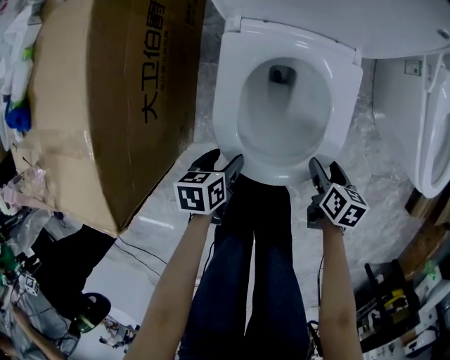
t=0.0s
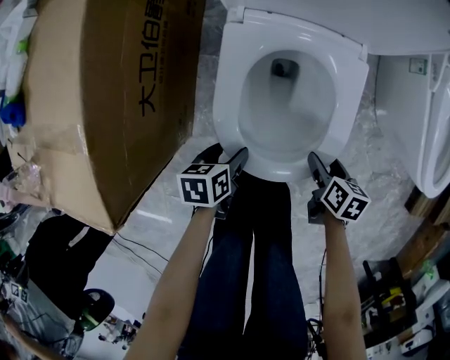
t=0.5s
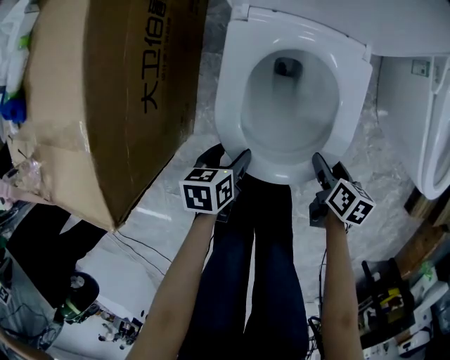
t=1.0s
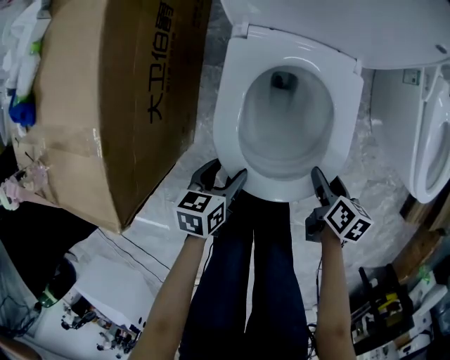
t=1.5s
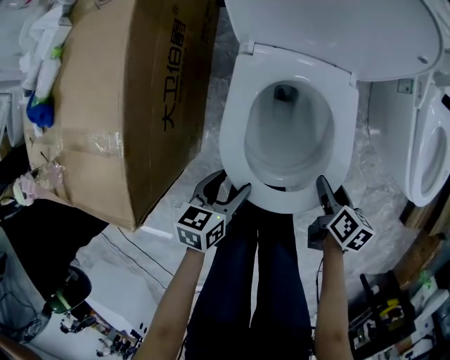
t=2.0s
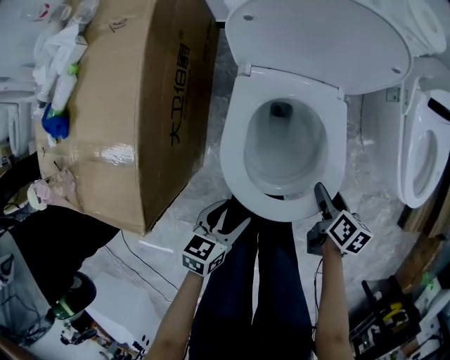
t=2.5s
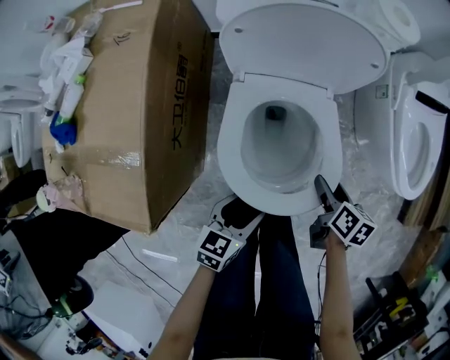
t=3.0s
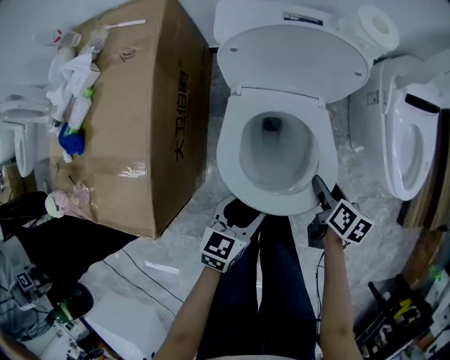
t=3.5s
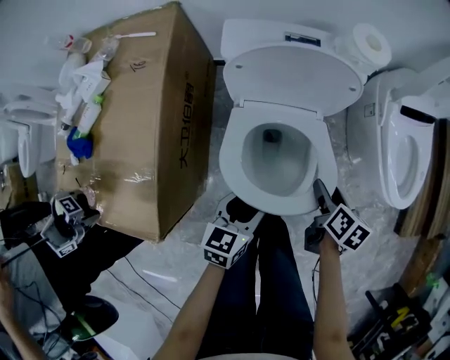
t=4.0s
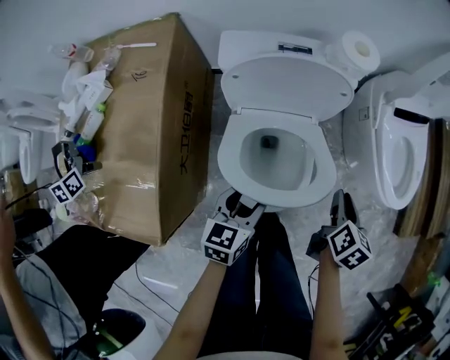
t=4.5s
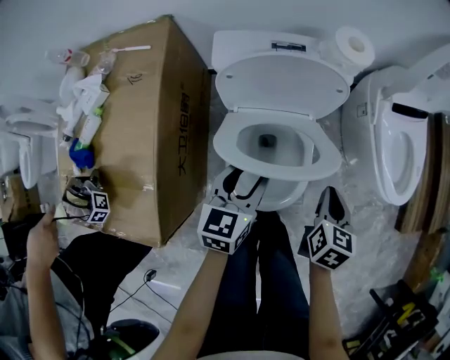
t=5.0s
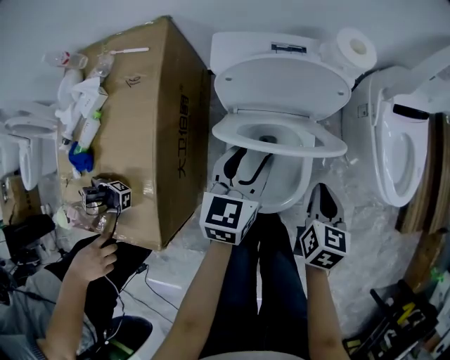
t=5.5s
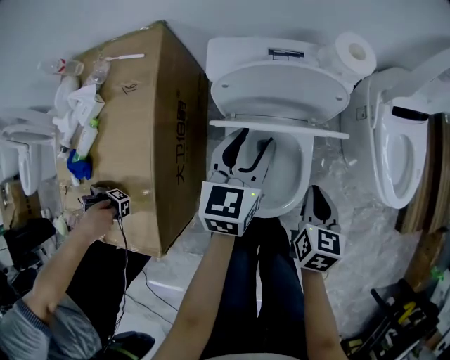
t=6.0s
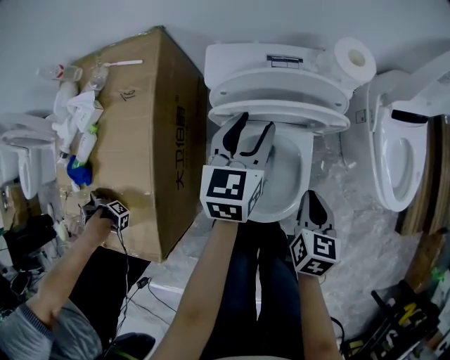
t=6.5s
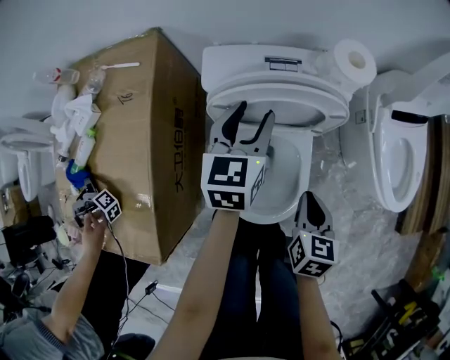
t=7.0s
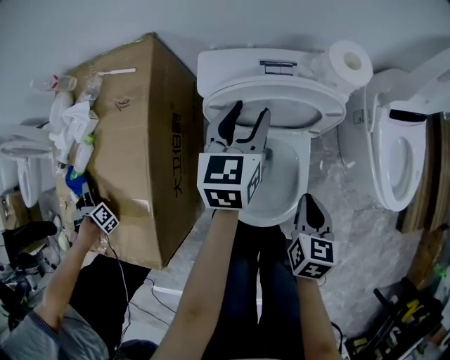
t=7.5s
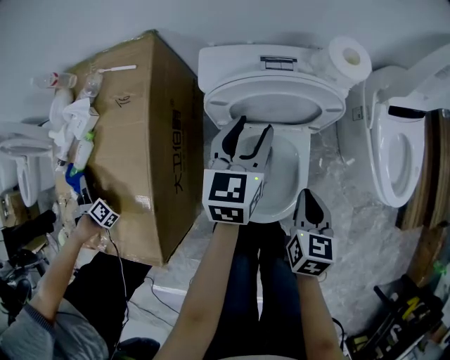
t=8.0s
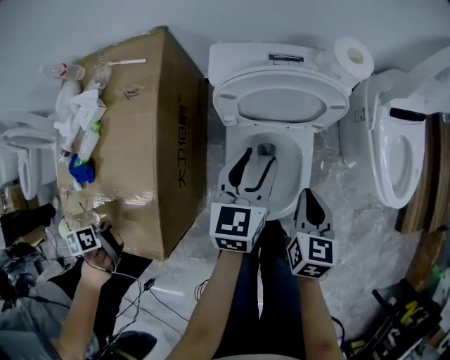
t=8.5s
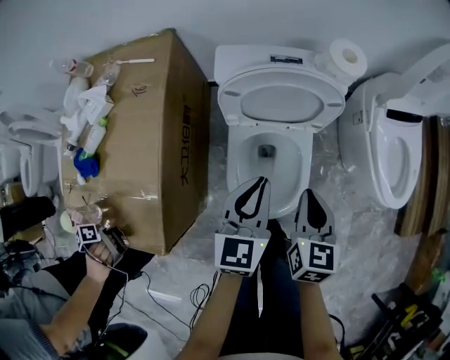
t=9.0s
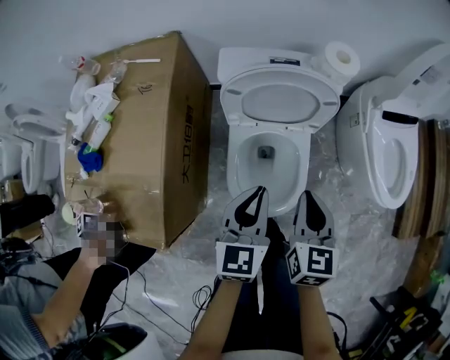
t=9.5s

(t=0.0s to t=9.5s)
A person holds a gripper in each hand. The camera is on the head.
t=0.0s - t=2.0s: The two grippers go about 10 cm upward.
t=2.0s - t=4.0s: The two grippers go some 15 cm upward and forward. The left gripper turns by some 20 degrees.
t=4.0s - t=5.5s: The right gripper is displaced upward by approximately 5 cm, rotates roughly 30 degrees, and closes; the left gripper goes about 15 cm forward and upward.
t=5.5s - t=7.5s: The left gripper heads forward, covering some 15 cm.
t=7.5s - t=9.5s: The left gripper is displaced backward by roughly 25 cm, and closes. The right gripper goes some 10 cm upward and backward.

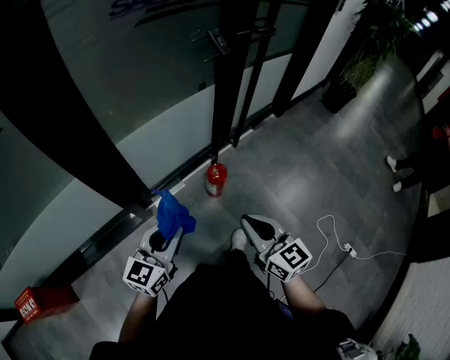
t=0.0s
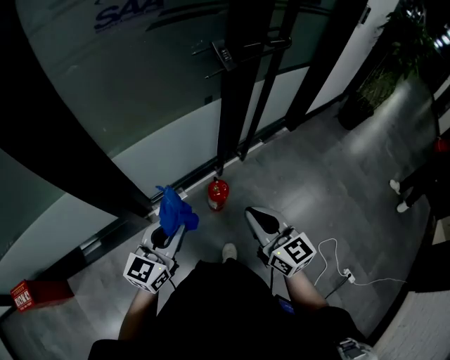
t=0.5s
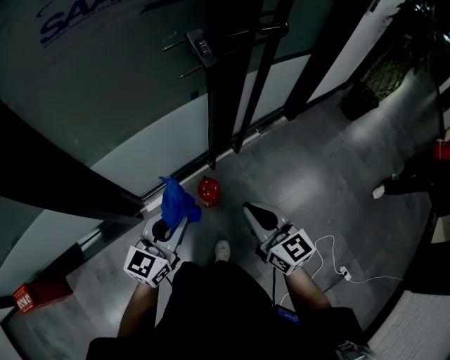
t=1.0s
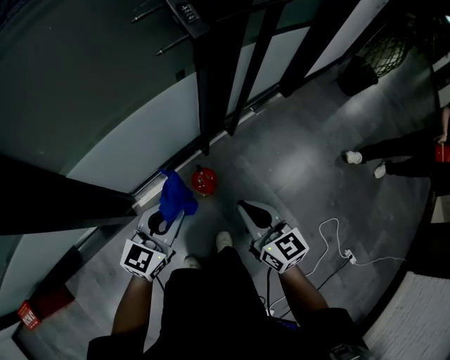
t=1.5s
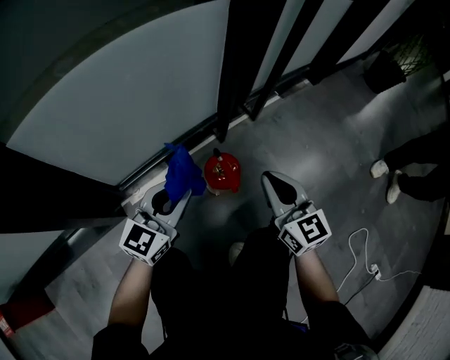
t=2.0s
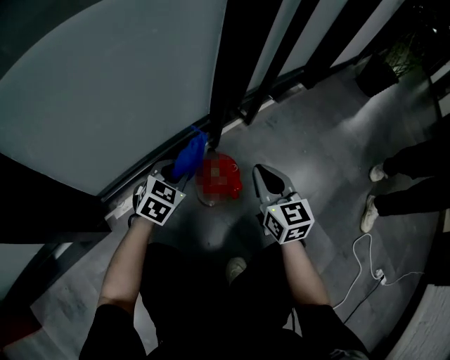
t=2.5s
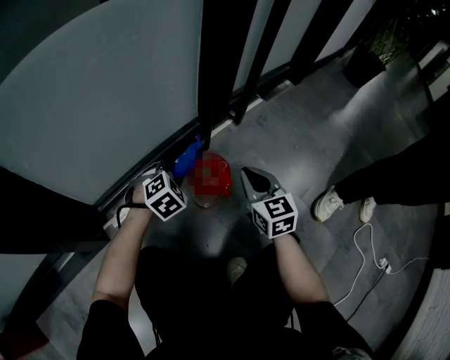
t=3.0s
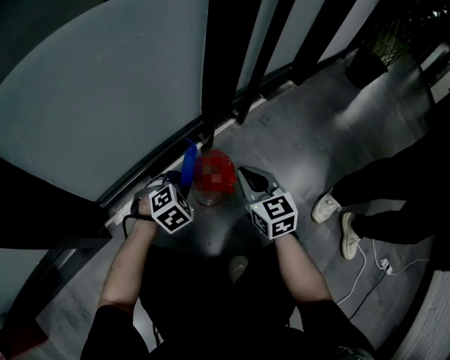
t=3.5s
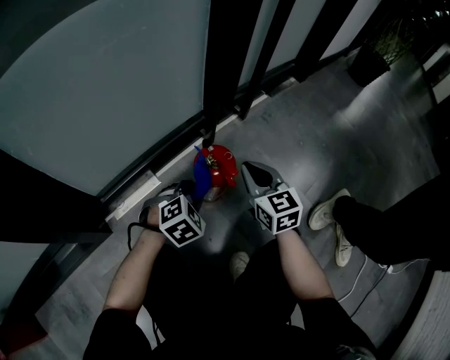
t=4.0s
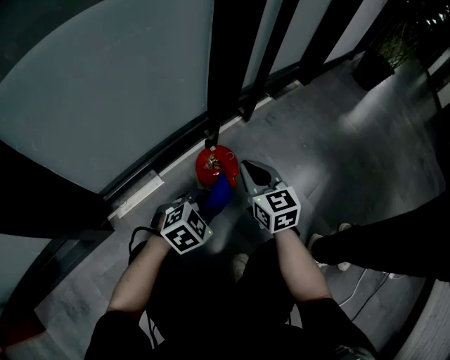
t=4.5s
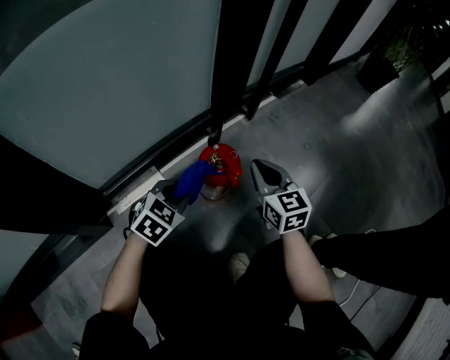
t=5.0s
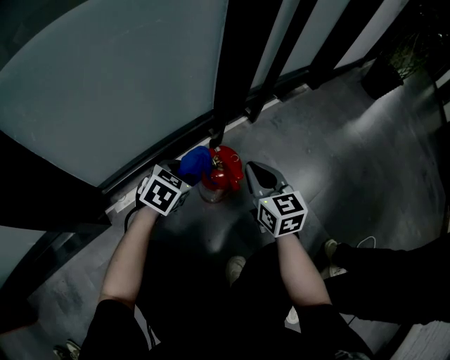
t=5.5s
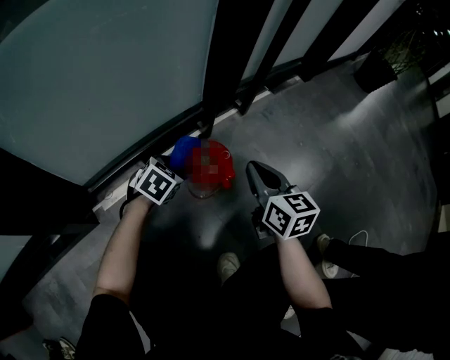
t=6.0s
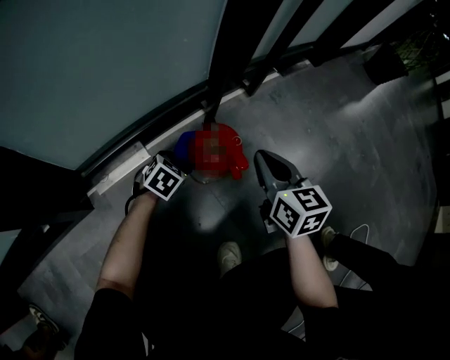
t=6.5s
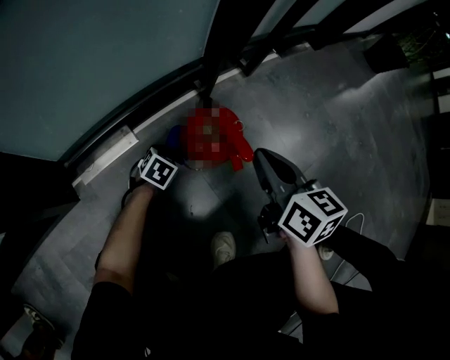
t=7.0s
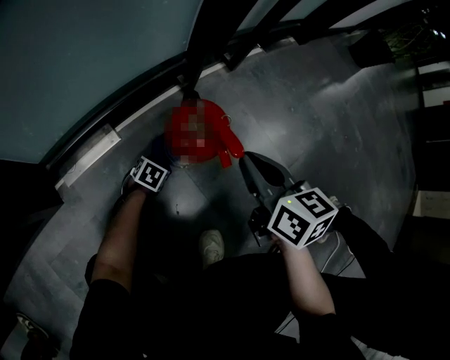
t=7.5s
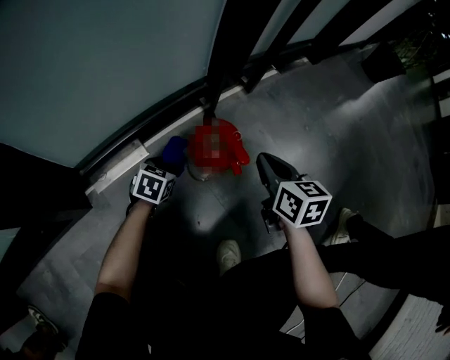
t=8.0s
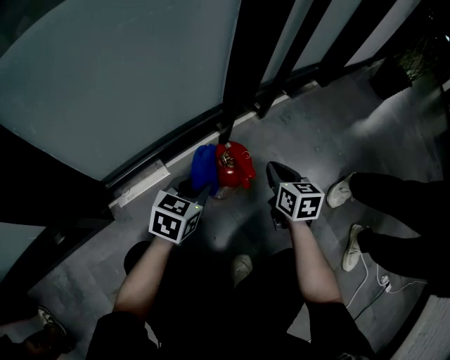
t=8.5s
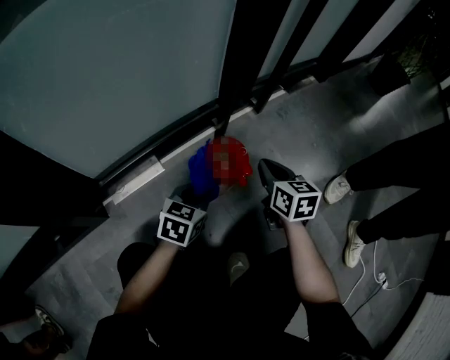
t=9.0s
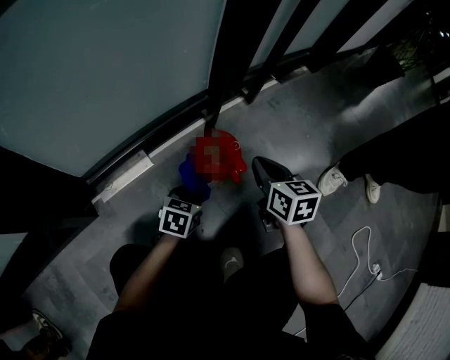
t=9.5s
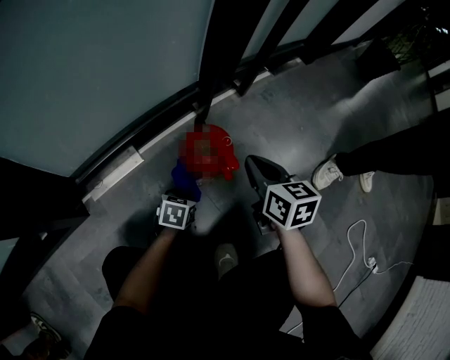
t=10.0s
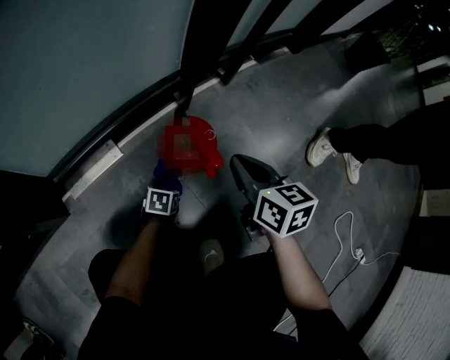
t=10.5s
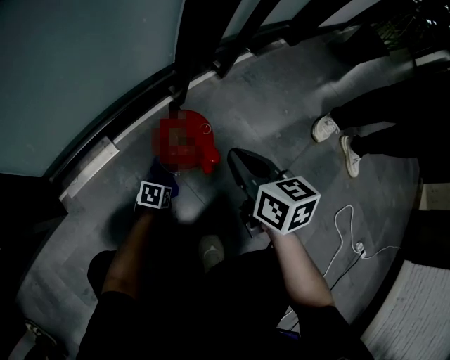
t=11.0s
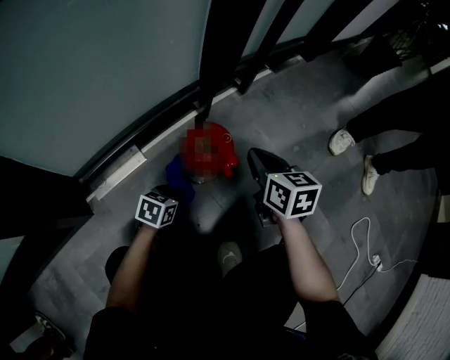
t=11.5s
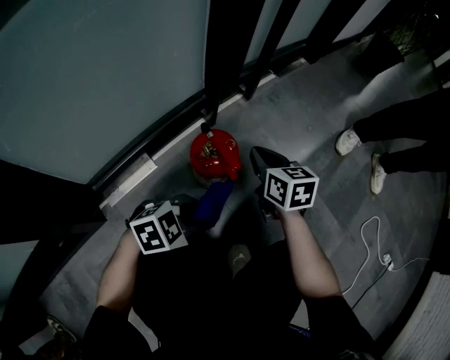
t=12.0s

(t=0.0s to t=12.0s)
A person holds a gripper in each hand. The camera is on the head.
t=0.0s - t=2.0s: The two grippers go roughly 50 cm downward and forward.
t=2.0s - t=4.0s: The grippers both shift downward by approximately 20 cm. The left gripper tips its fingers downward by roughly 50 degrees.
t=4.0s - t=6.0s: The left gripper heads forward, to the left and downward, covering some 10 cm, and turns by approximately 30 degrees.
t=6.0s - t=8.0s: The left gripper travels downward by roughly 10 cm, while the right gripper is displaced downward by some 5 cm.
t=8.0s - t=10.0s: The left gripper goes roughly 10 cm to the right and backward, and goes upward and returns, some 20 cm each way.
t=10.0s - t=12.0s: The left gripper goes approximately 20 cm upward, and rotates around the line of its fingers by some 50 degrees, clockwise from behind.

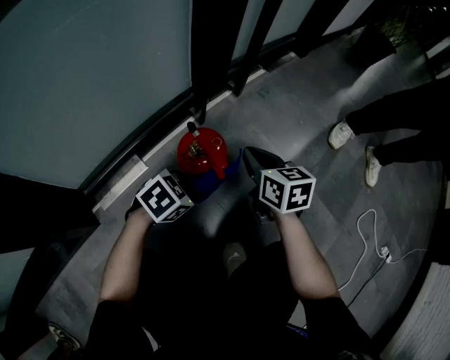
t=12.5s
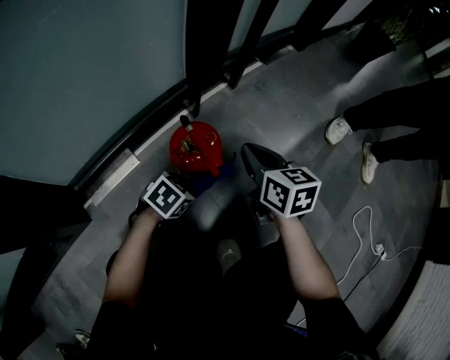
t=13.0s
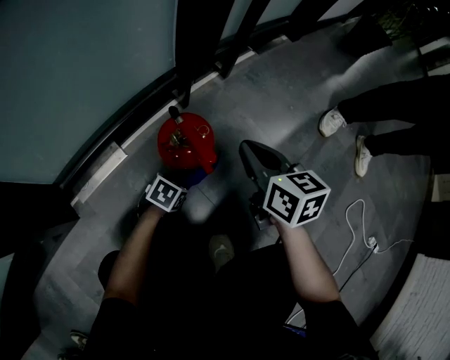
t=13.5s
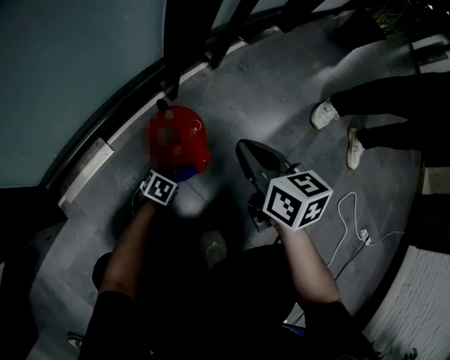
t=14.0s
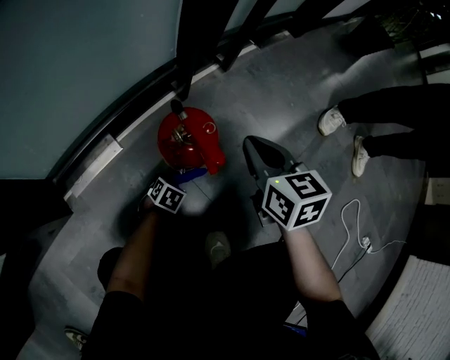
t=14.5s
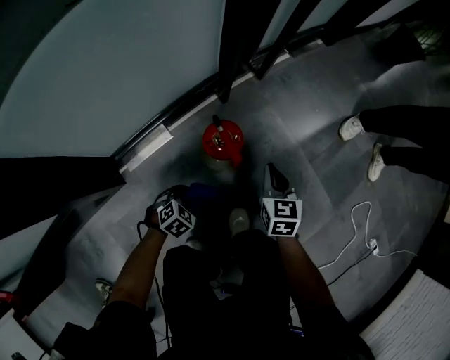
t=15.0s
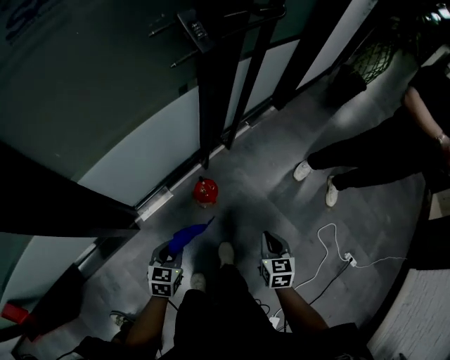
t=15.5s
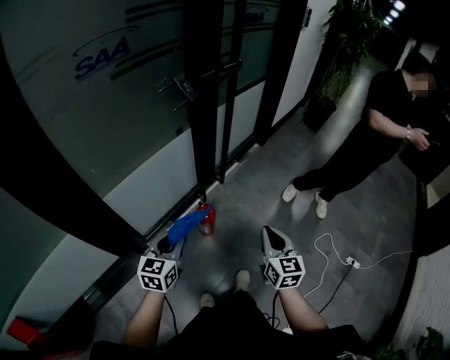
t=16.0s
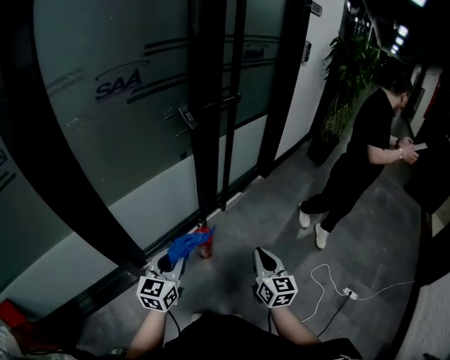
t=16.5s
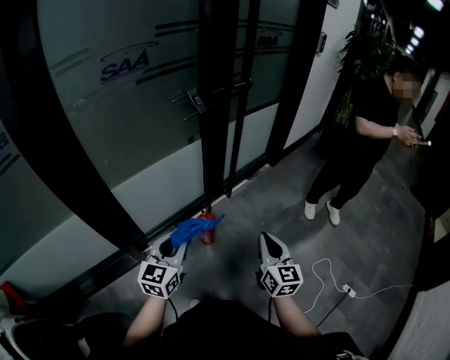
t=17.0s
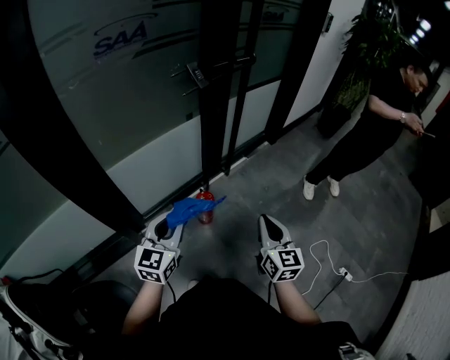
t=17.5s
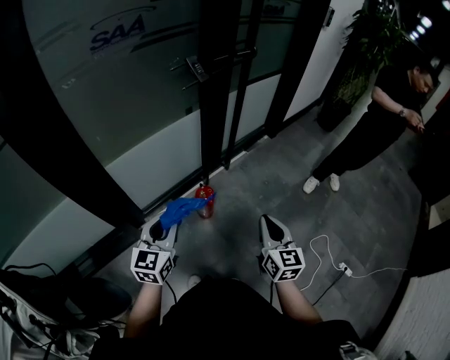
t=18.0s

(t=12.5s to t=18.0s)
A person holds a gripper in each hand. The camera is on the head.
t=12.5s - t=14.5s: The left gripper heads downward, covering some 25 cm, and swivels approximately 30 degrees.
t=14.5s - t=16.0s: The right gripper is displaced upward and backward by roughly 70 cm, and turns by some 20 degrees. The left gripper shifts approximately 90 cm upward, and tips its fingers upward by some 50 degrees.
t=16.0s - t=18.0s: The left gripper travels upward by about 5 cm.
